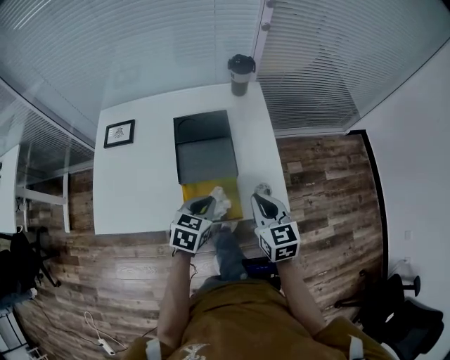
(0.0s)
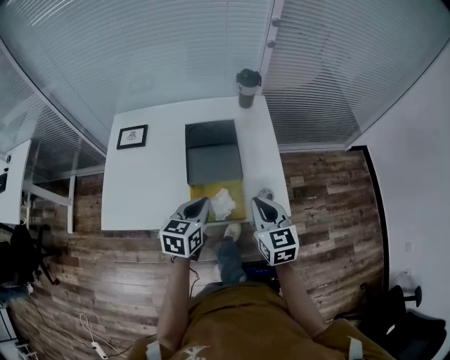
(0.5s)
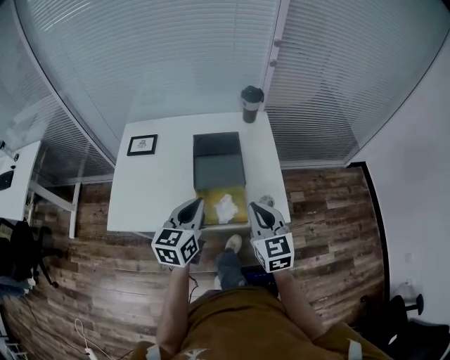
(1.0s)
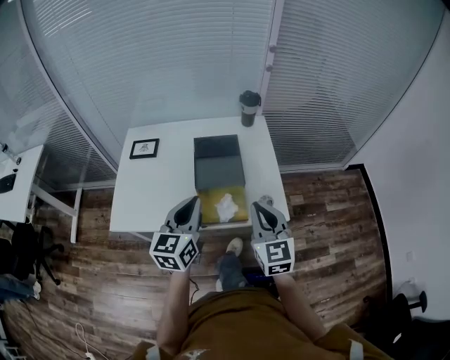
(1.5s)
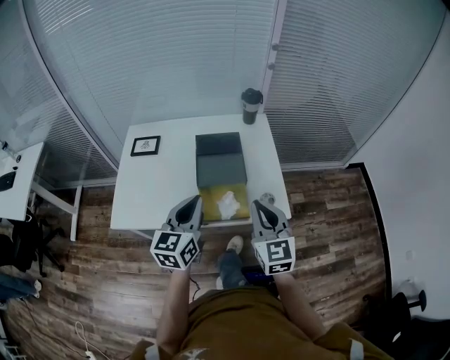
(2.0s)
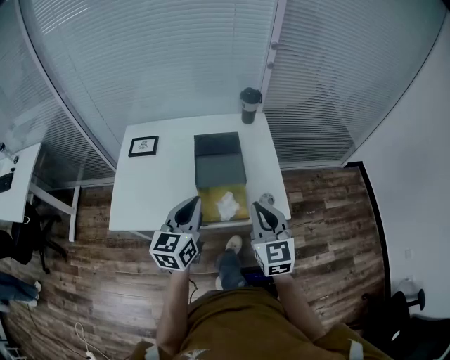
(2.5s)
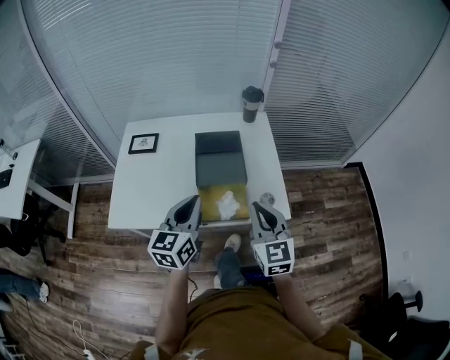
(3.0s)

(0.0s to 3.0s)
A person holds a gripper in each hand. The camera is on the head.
0.0s - 1.5s: The left gripper heads upward and to the left, covering some 20 cm, and angles its fingers upward, by about 30 degrees. Meanwhile the right gripper is displaced upward and backward by about 15 cm, and turns by roughly 20 degrees.
1.5s - 3.0s: The grippers move only a little.

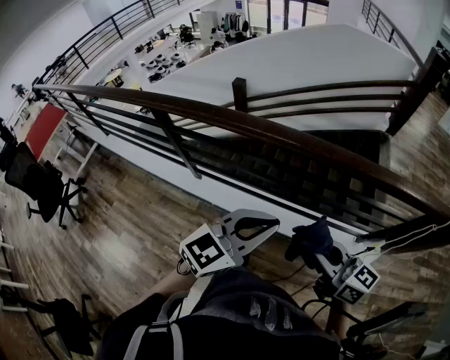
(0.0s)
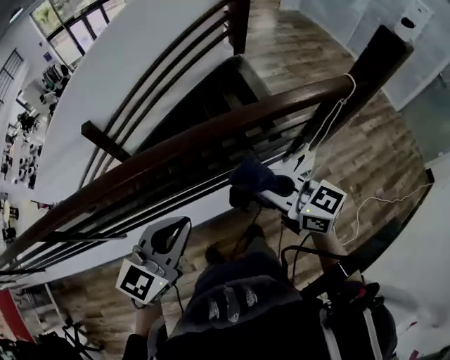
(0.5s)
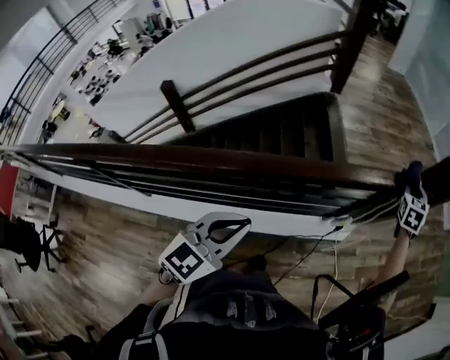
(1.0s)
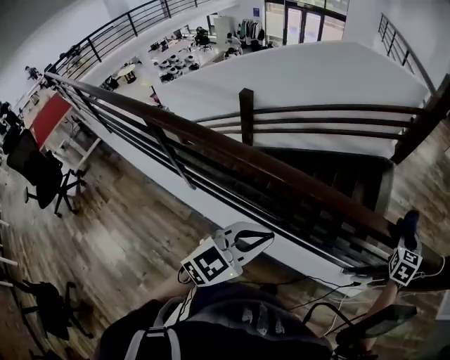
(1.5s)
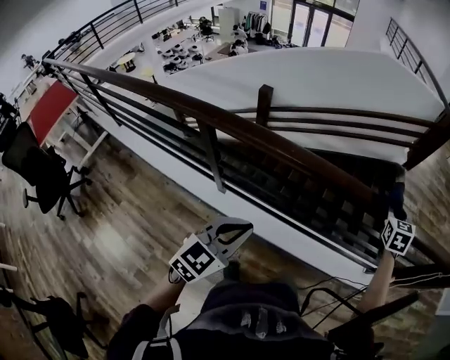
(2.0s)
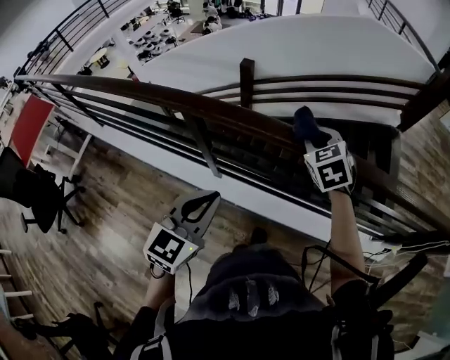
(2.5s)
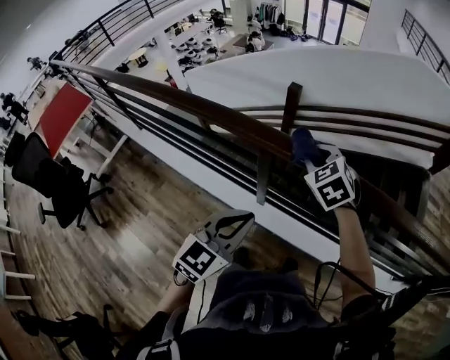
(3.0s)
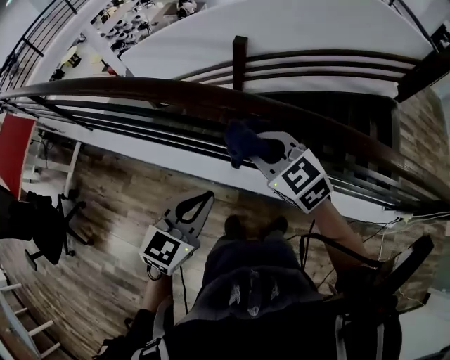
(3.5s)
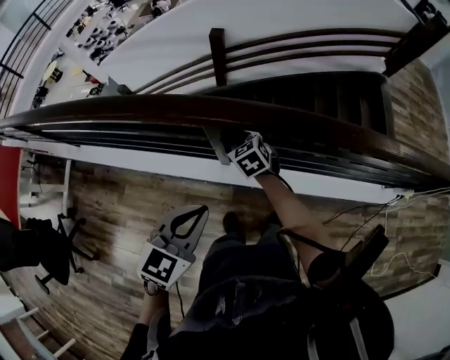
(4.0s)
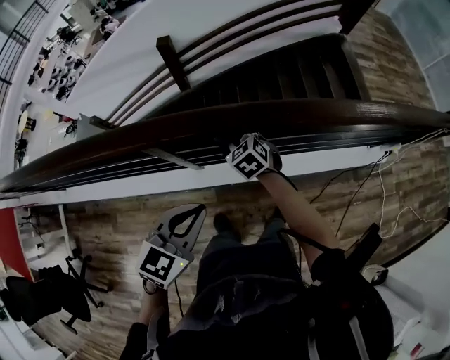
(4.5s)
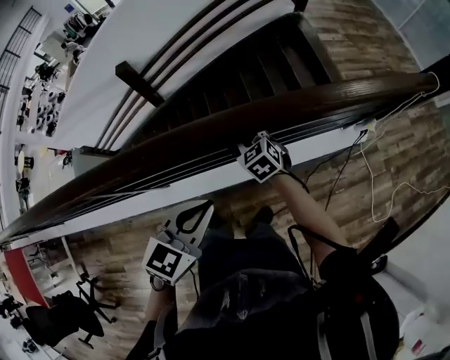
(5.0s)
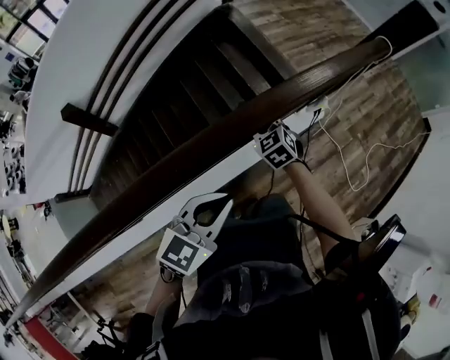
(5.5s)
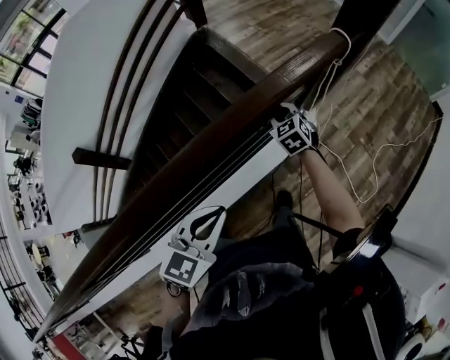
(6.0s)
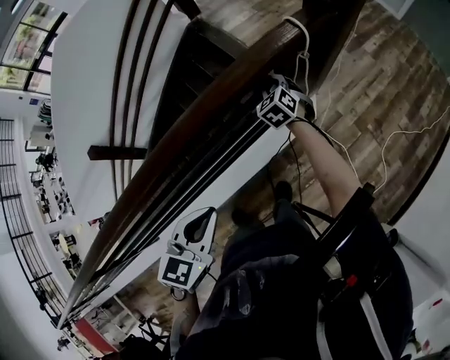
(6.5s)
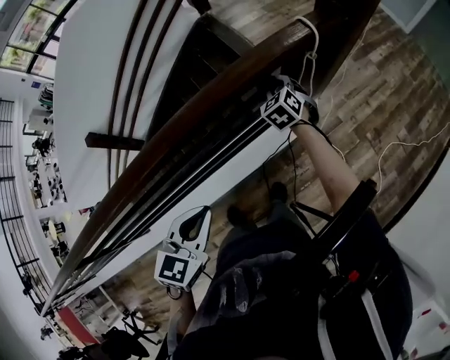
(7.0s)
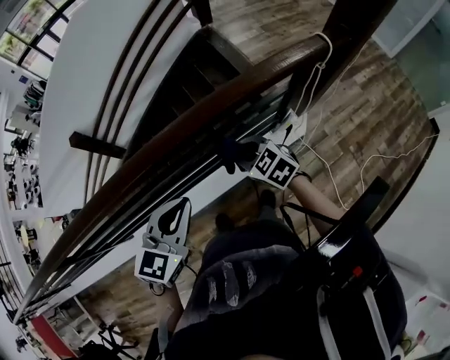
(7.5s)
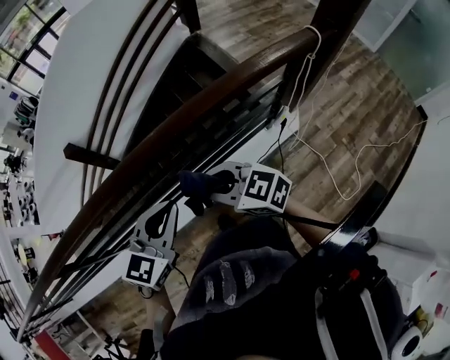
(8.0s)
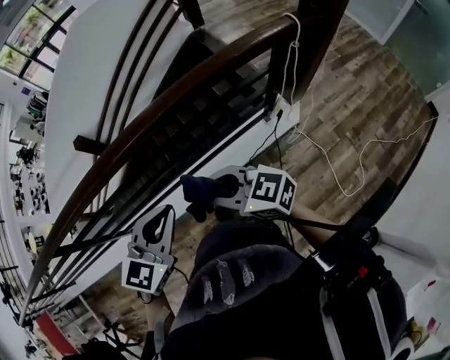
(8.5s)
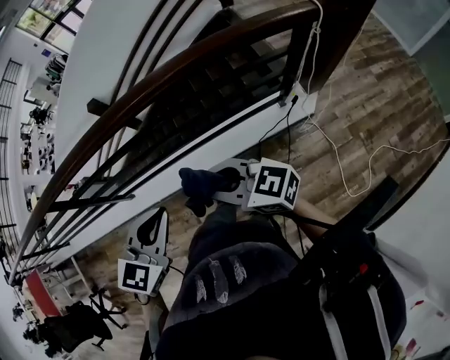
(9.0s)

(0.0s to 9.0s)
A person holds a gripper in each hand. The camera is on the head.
0.0s - 2.0s: The left gripper shifts by roughly 30 cm, and swivels some 30 degrees. Meanwhile the right gripper turns by approximately 70 degrees.
2.0s - 4.5s: The left gripper shifts by about 25 cm; the right gripper changes place by about 60 cm, and swivels about 30 degrees.
4.5s - 7.0s: The two grippers travel together, some 90 cm. The right gripper turns by roughly 40 degrees.
7.0s - 9.0s: The right gripper shifts by about 60 cm, and tips its fingers upward by roughly 40 degrees. Meanwhile the left gripper ends up some 25 cm from where it was.

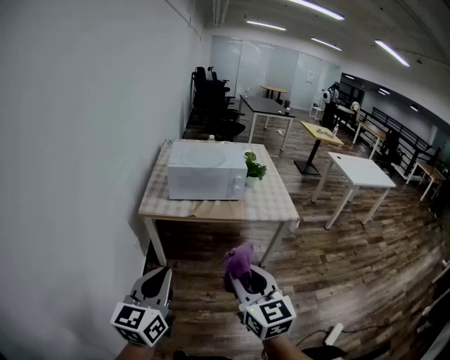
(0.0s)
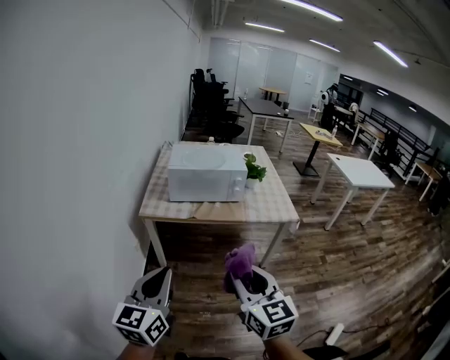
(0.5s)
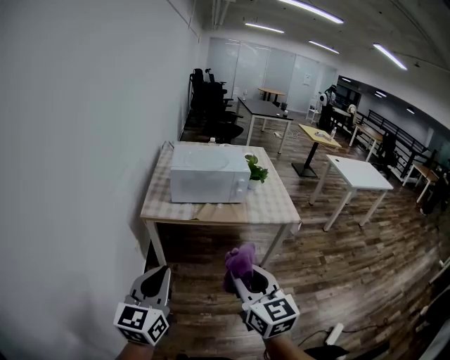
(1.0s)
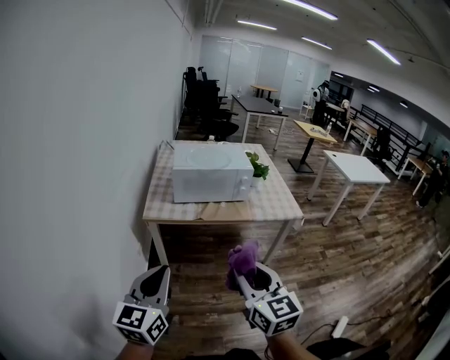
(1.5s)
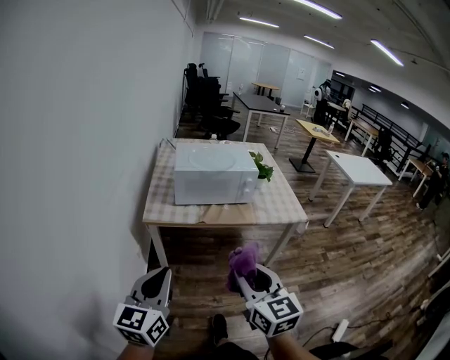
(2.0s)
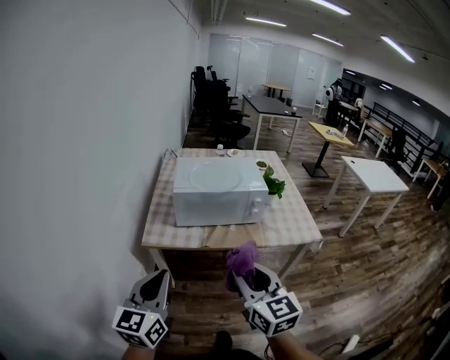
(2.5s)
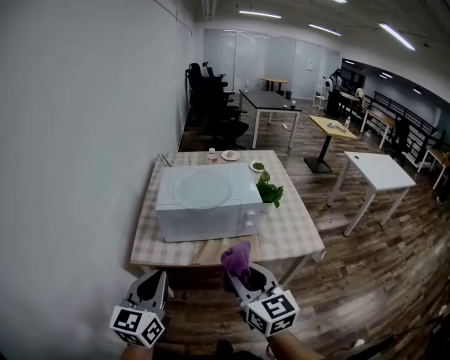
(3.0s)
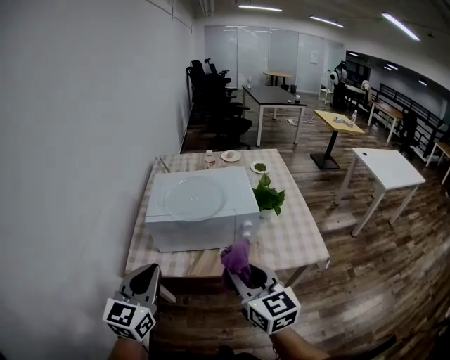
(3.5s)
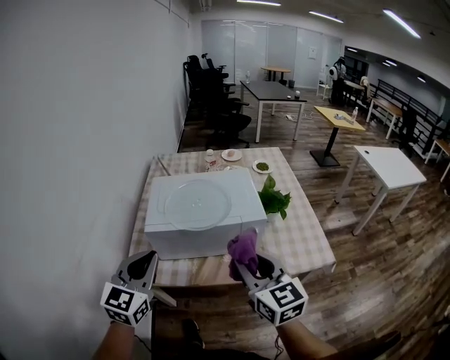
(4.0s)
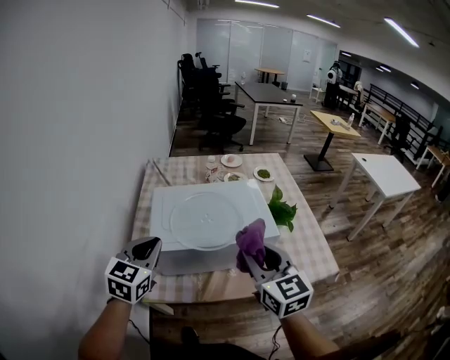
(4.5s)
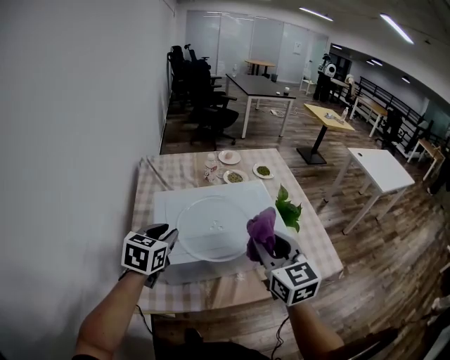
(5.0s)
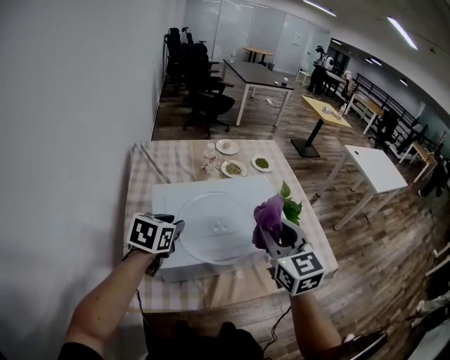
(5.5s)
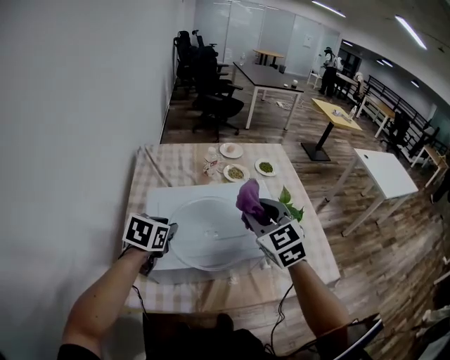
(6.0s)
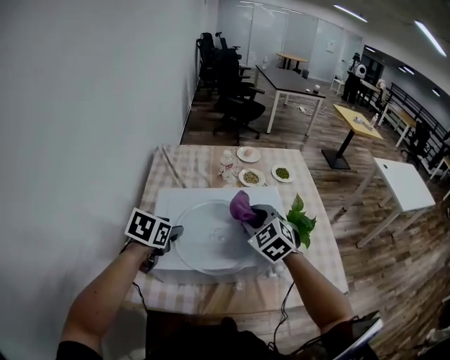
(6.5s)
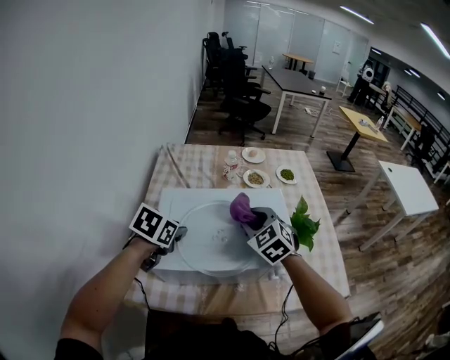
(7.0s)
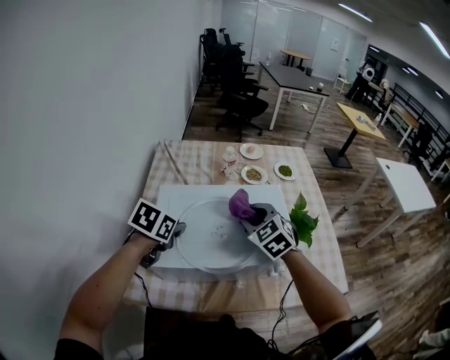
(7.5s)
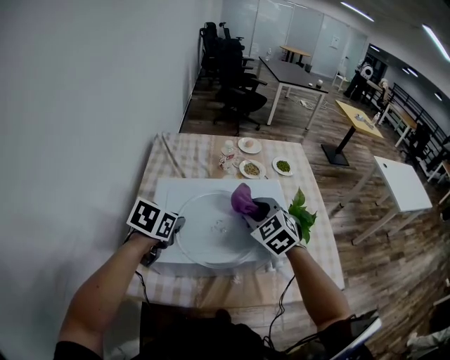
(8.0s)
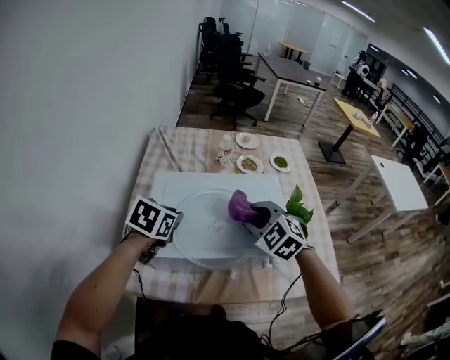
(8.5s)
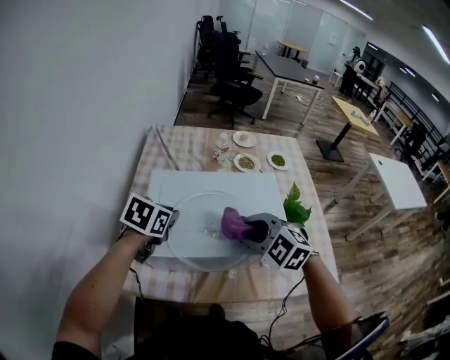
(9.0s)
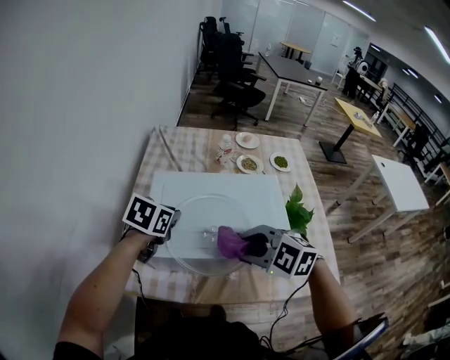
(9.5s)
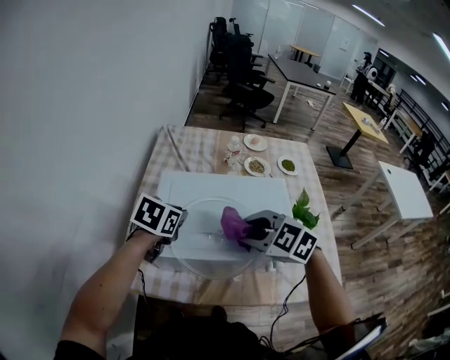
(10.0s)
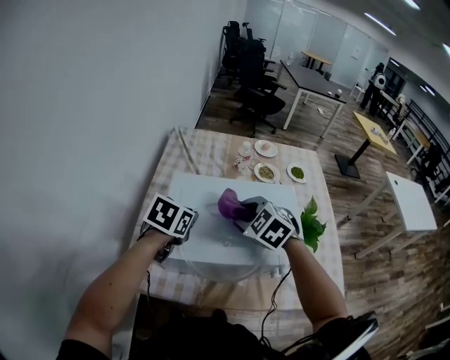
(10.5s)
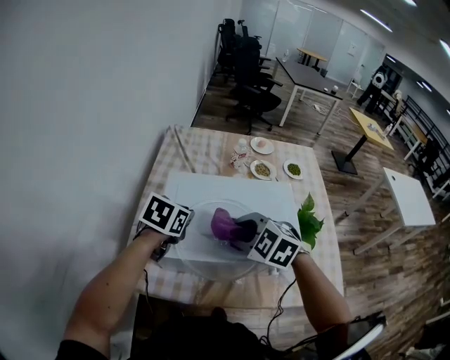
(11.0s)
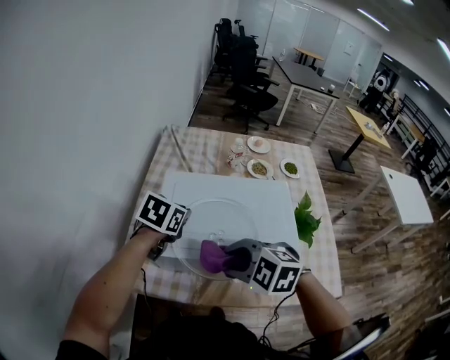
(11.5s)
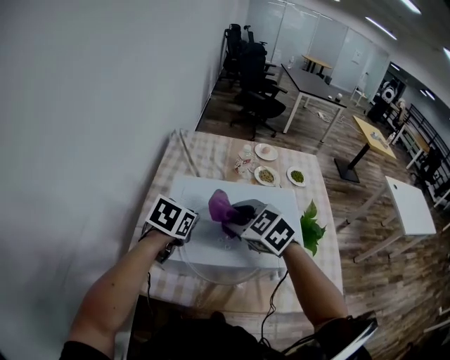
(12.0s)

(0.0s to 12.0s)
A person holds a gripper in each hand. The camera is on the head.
0.0s - 2.0s: Both grippers move to the left and forward, roughly 10 cm.
2.0s - 4.0s: Both grippers travel together forward, approximately 35 cm. The left gripper rotates roughly 20 degrees.
4.0s - 6.0s: The right gripper is displaced forward by approximately 25 cm, and swivels about 30 degrees. The left gripper shifts approximately 30 cm forward and downward, tips its fingers downward by approximately 40 degrees, and opens.
6.0s - 8.0s: The right gripper heads downward, covering about 10 cm, and swivels about 20 degrees.
8.0s - 10.0s: The right gripper heads backward, covering about 10 cm, and rotates approximately 30 degrees.
10.0s - 12.0s: The right gripper moves forward and backward over some 15 cm, changing direction 2 times.

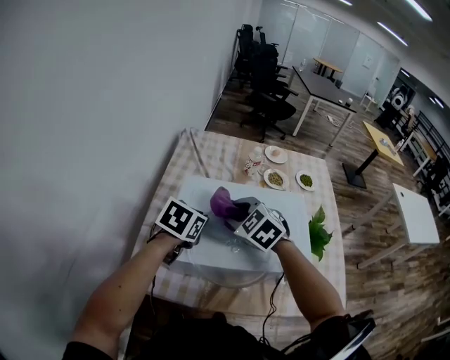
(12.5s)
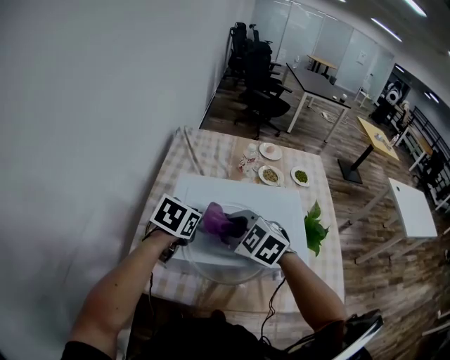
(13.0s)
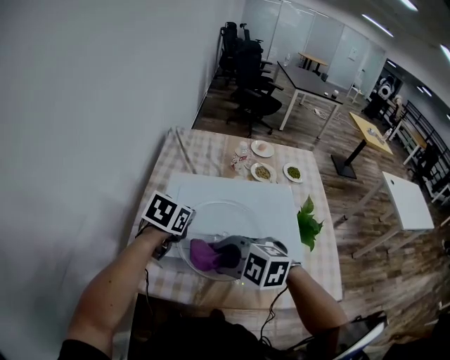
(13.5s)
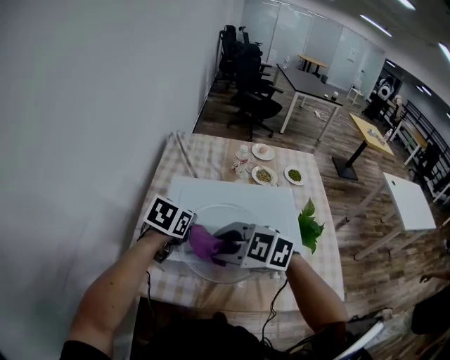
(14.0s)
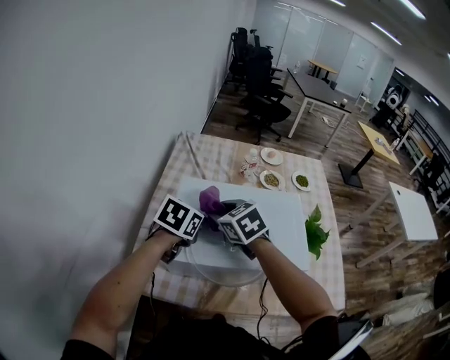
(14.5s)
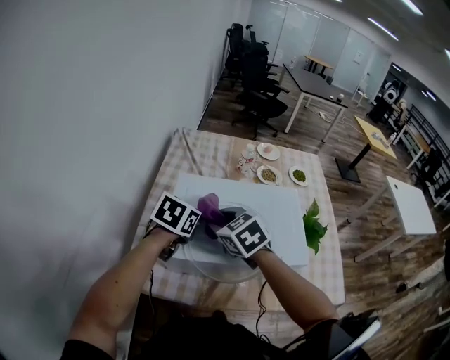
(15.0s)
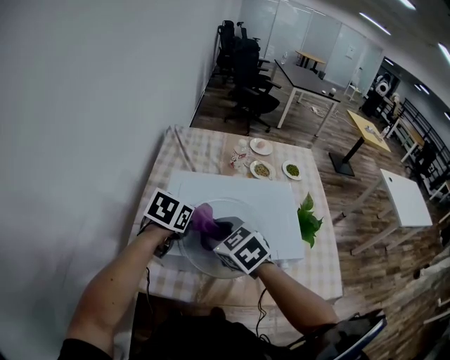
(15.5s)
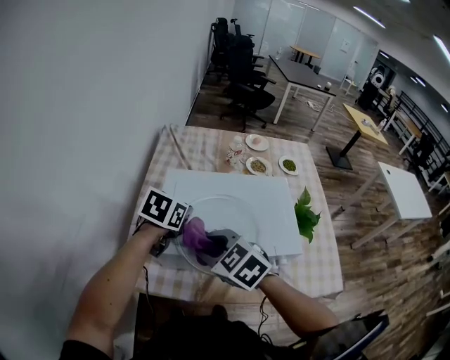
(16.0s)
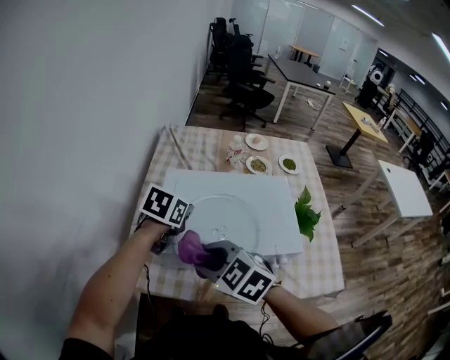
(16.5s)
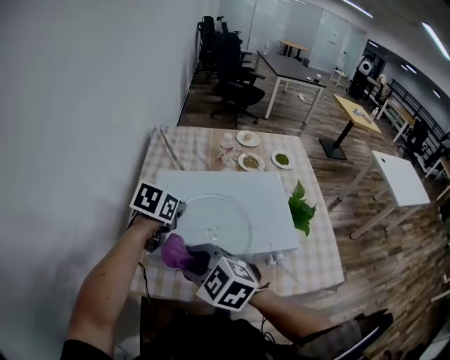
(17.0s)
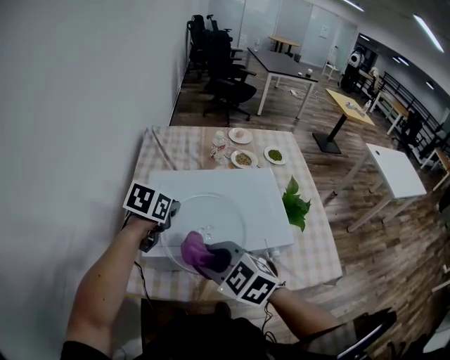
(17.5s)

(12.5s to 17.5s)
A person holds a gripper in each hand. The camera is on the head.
12.5s - 15.0s: The right gripper moves forward and backward over some 15 cm, changing direction 2 times, and swivels about 20 degrees.
15.0s - 17.5s: The right gripper heads backward, covering about 15 cm.
